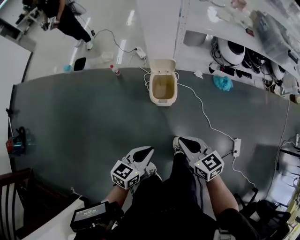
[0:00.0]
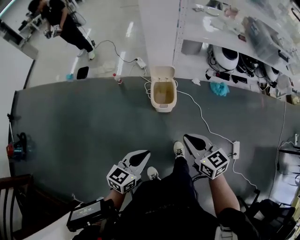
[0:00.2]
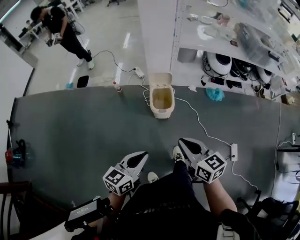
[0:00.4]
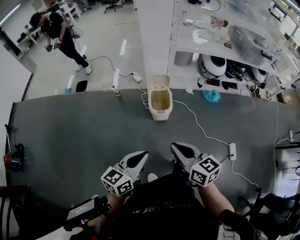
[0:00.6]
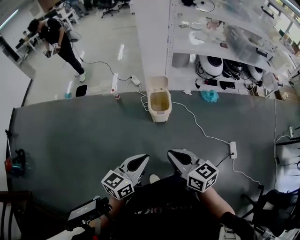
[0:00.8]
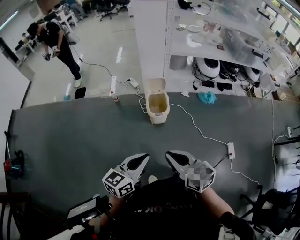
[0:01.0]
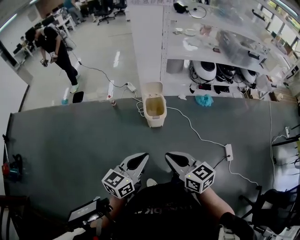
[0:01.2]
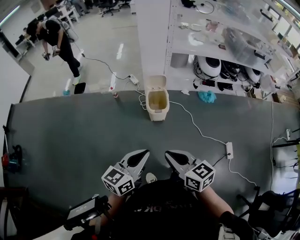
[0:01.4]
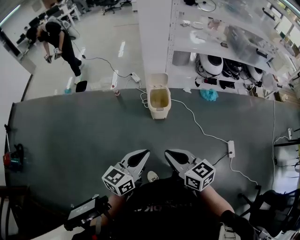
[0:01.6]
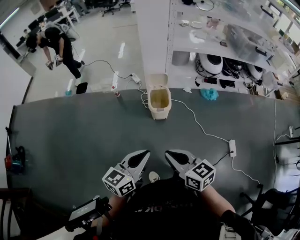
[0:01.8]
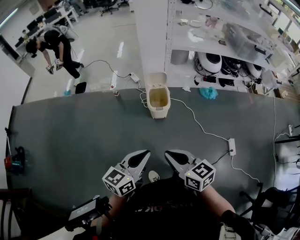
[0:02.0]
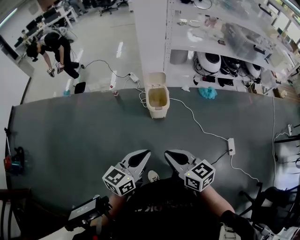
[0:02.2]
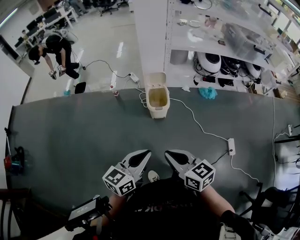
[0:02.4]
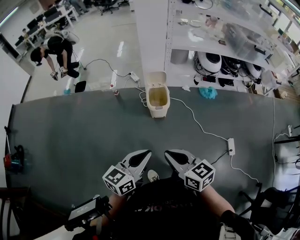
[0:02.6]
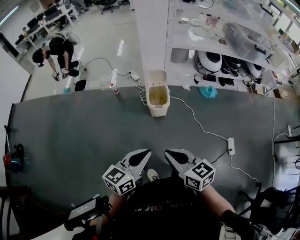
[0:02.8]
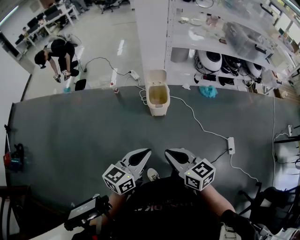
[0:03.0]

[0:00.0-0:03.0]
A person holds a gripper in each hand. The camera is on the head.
0:00.0 to 0:01.6: The left gripper travels upward and backward by about 20 cm, while the right gripper travels backward, upward and to the left by some 25 cm.
0:01.6 to 0:03.0: The grippers move only a little.

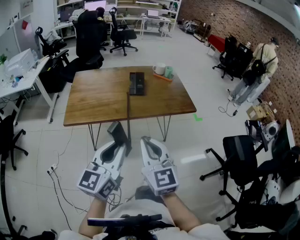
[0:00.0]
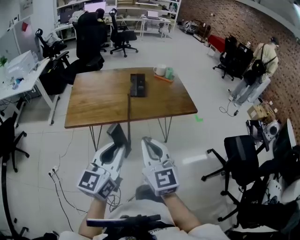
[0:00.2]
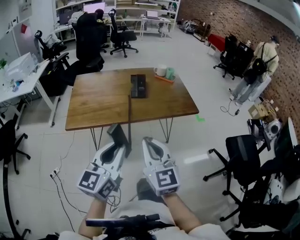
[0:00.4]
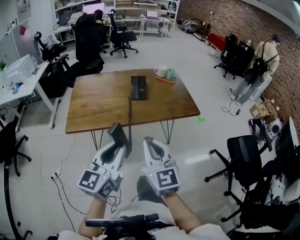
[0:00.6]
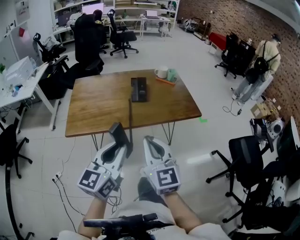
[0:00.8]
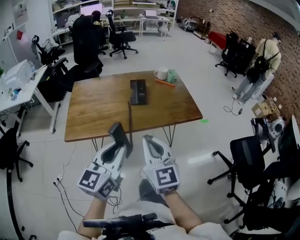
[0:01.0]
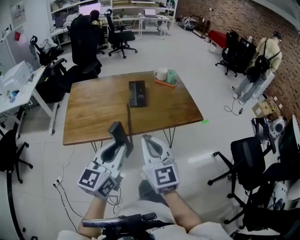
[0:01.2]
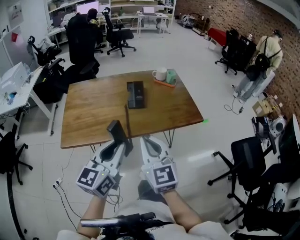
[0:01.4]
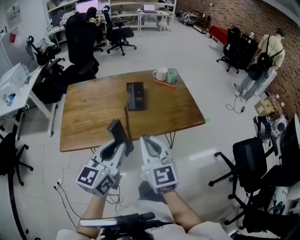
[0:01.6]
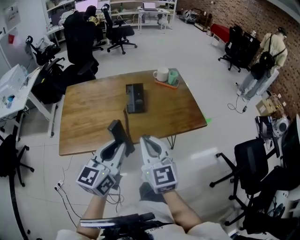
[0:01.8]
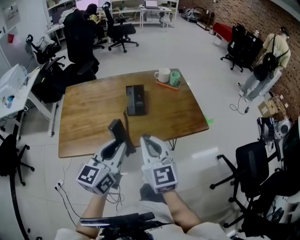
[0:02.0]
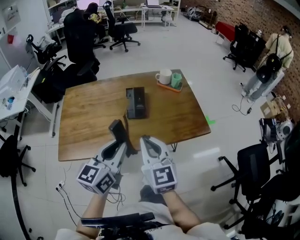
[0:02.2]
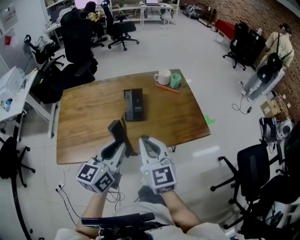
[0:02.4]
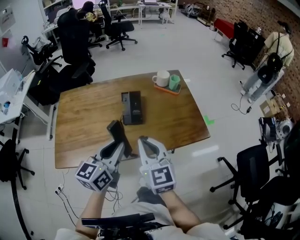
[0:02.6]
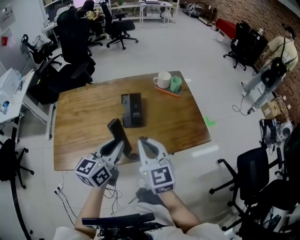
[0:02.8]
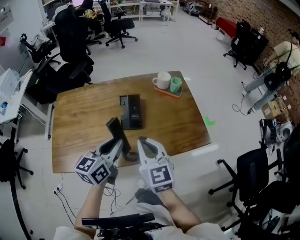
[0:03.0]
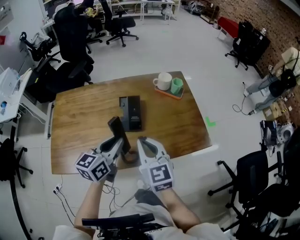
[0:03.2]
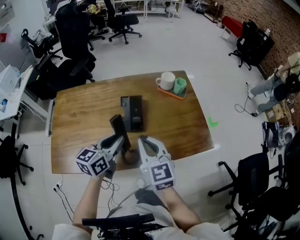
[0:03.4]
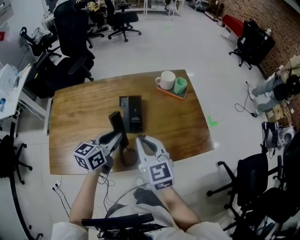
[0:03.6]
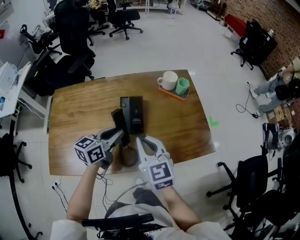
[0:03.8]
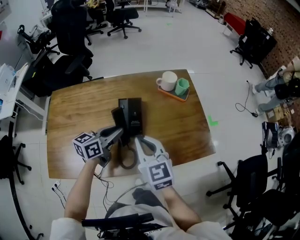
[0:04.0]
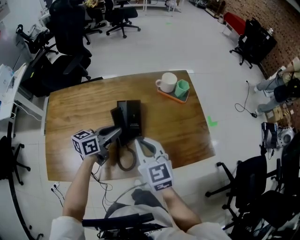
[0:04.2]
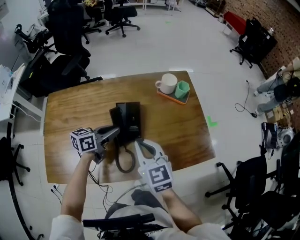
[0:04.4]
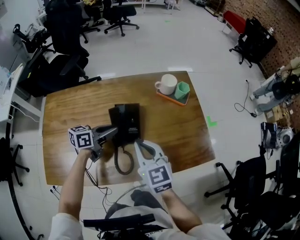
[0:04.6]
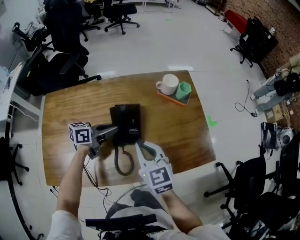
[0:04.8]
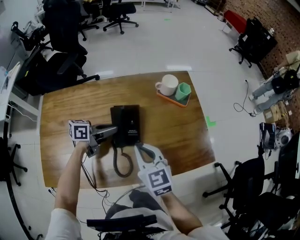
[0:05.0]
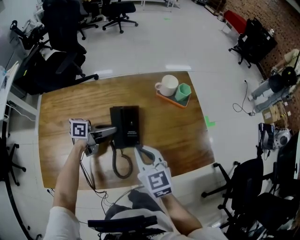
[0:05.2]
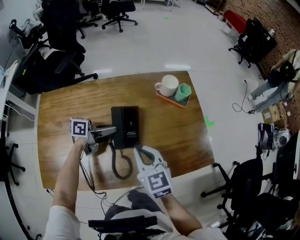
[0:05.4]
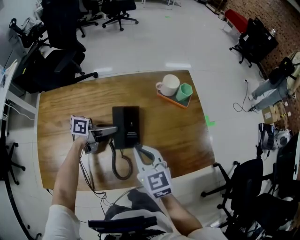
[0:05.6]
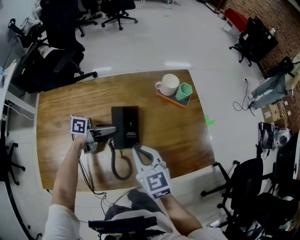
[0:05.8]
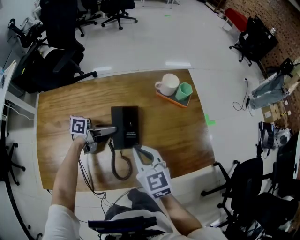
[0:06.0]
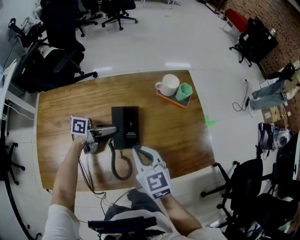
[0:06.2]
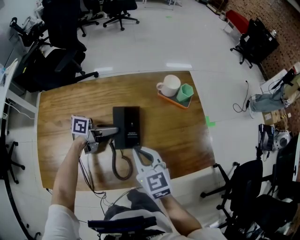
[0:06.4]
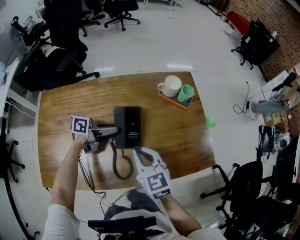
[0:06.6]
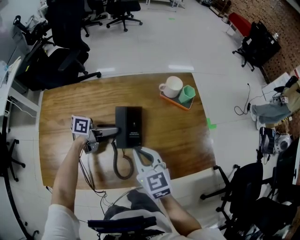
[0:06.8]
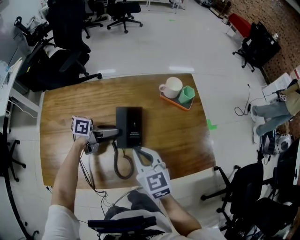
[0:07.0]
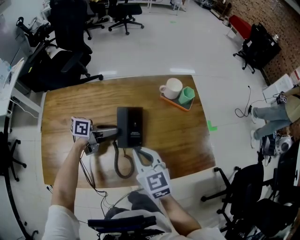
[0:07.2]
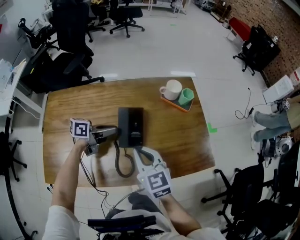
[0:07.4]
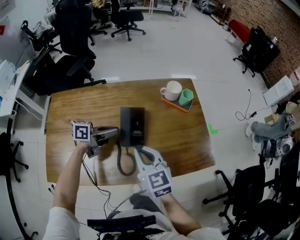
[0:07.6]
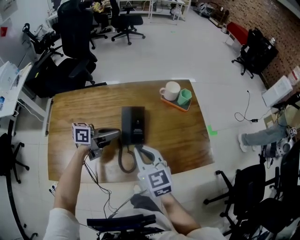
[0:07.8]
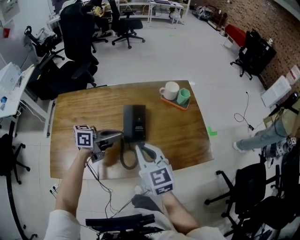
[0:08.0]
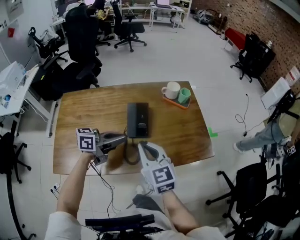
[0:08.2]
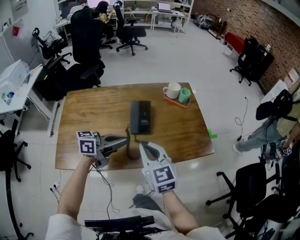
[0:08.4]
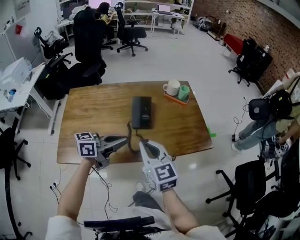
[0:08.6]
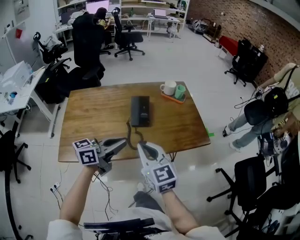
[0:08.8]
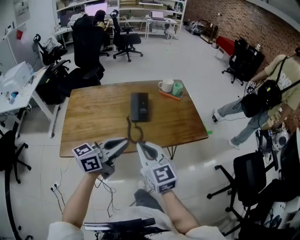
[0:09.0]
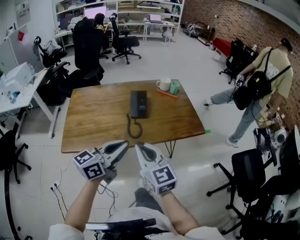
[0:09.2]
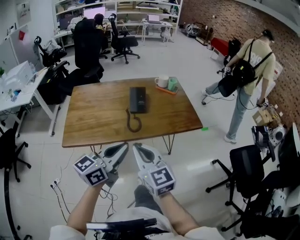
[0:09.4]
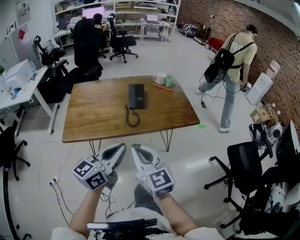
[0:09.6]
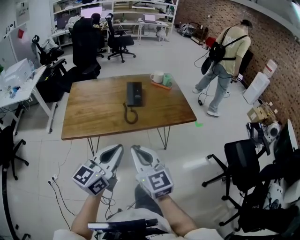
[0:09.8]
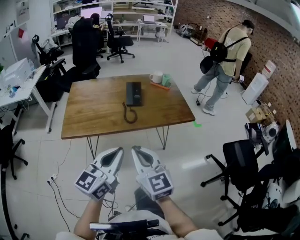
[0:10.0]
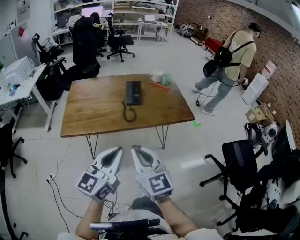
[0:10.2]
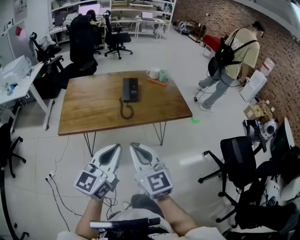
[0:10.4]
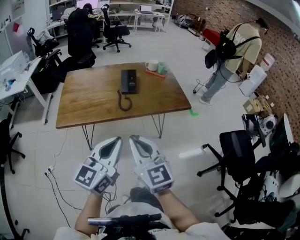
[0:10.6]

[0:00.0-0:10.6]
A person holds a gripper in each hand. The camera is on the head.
0:00.0 to 0:01.6: Both grippers travel together forward, about 20 cm.
0:01.6 to 0:03.0: Both grippers move forward, some 20 cm.
0:03.0 to 0:04.6: The right gripper is displaced forward and downward by about 10 cm; the left gripper is displaced forward and downward by roughly 20 cm, and rotates some 30 degrees.
0:04.6 to 0:06.0: The left gripper moves about 5 cm, and turns by approximately 20 degrees.
0:06.0 to 0:07.6: The left gripper travels upward by roughly 5 cm, and opens and closes again.
0:07.6 to 0:09.0: The left gripper shifts approximately 35 cm backward and upward, and changes its angle by some 30 degrees; the right gripper goes some 20 cm backward.
0:09.0 to 0:10.6: Both grippers travel together backward, some 20 cm. The left gripper changes its angle by roughly 30 degrees.

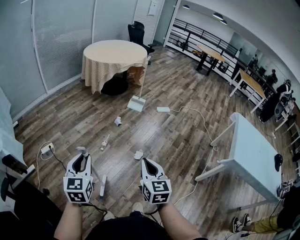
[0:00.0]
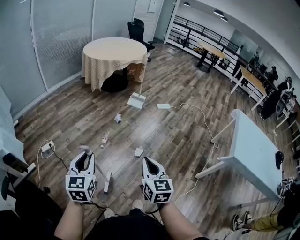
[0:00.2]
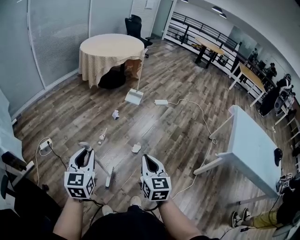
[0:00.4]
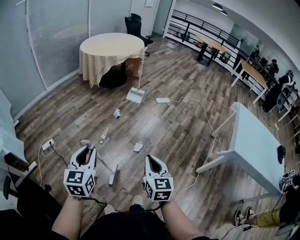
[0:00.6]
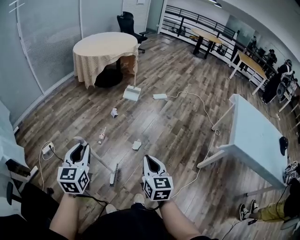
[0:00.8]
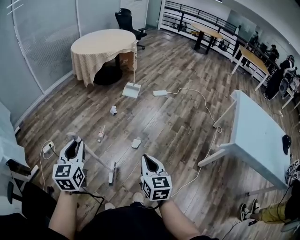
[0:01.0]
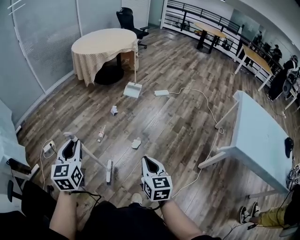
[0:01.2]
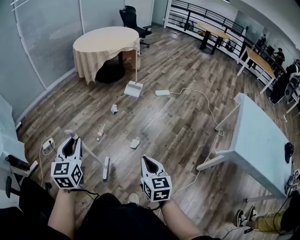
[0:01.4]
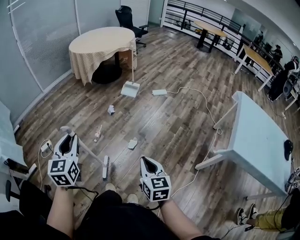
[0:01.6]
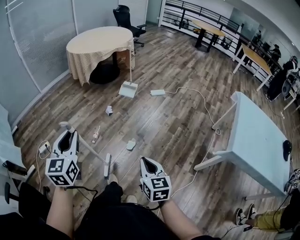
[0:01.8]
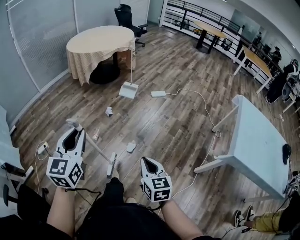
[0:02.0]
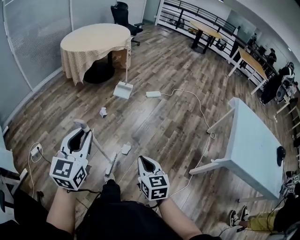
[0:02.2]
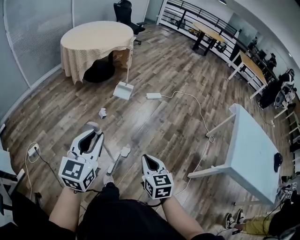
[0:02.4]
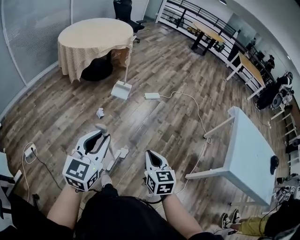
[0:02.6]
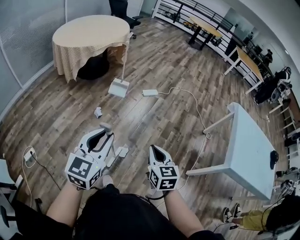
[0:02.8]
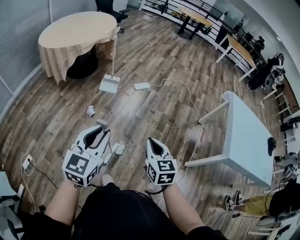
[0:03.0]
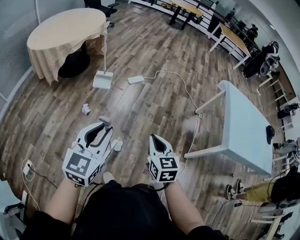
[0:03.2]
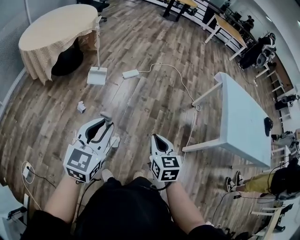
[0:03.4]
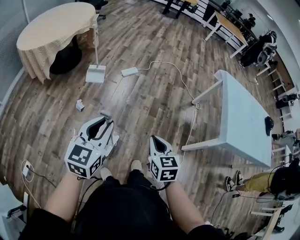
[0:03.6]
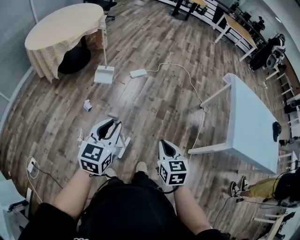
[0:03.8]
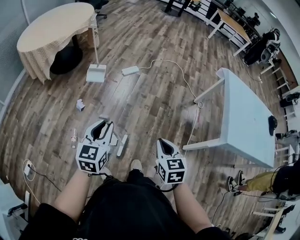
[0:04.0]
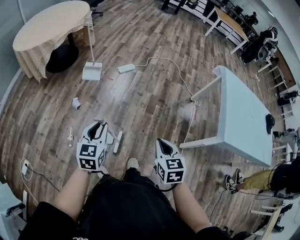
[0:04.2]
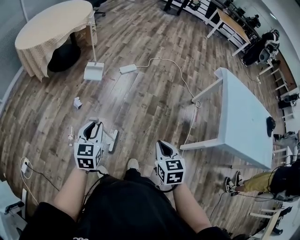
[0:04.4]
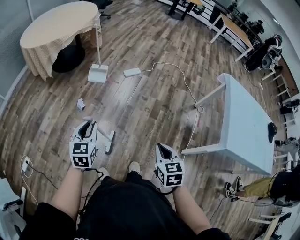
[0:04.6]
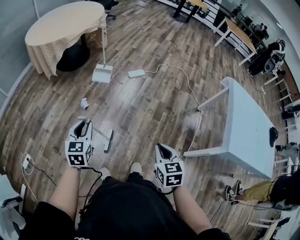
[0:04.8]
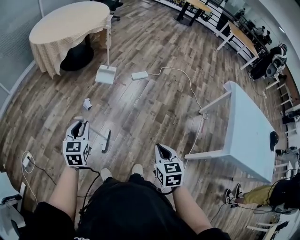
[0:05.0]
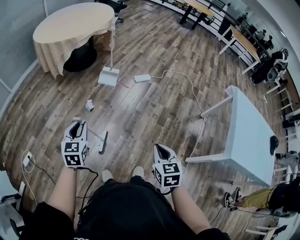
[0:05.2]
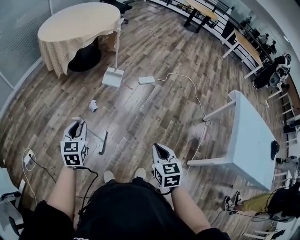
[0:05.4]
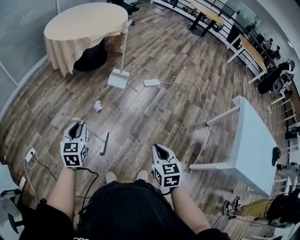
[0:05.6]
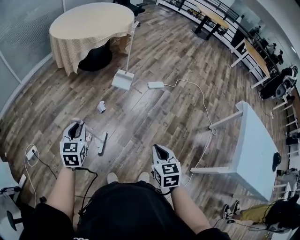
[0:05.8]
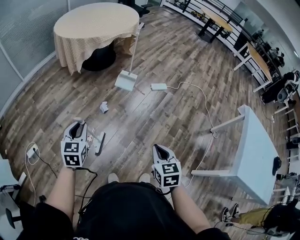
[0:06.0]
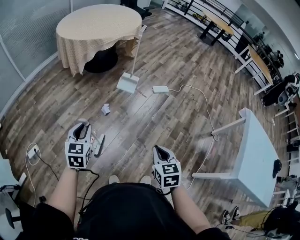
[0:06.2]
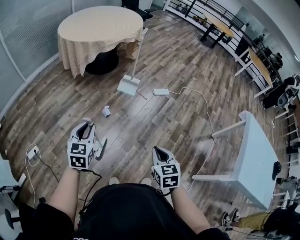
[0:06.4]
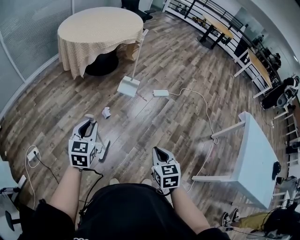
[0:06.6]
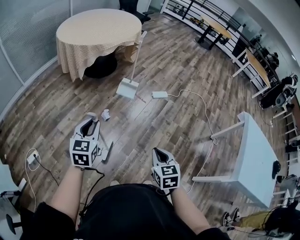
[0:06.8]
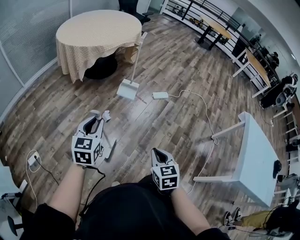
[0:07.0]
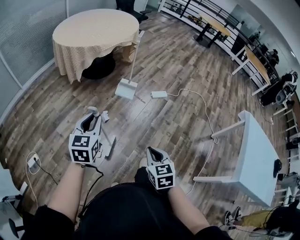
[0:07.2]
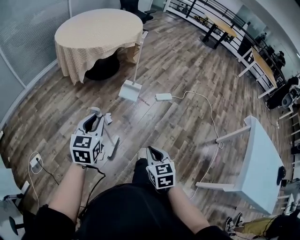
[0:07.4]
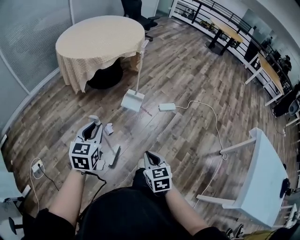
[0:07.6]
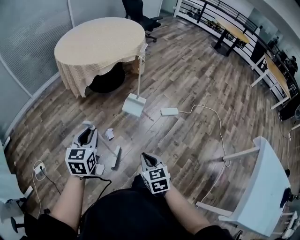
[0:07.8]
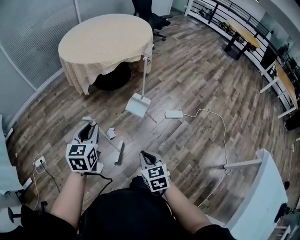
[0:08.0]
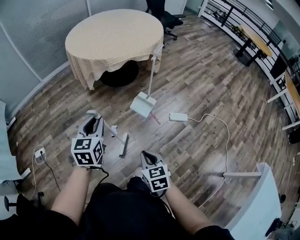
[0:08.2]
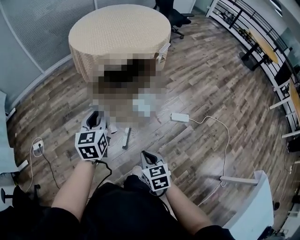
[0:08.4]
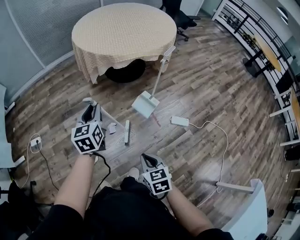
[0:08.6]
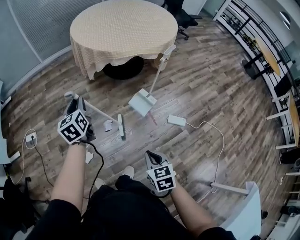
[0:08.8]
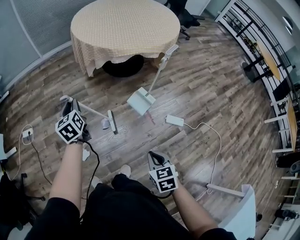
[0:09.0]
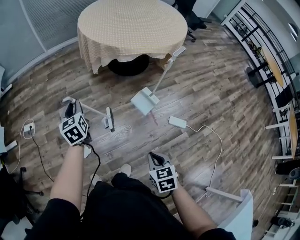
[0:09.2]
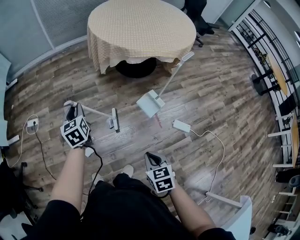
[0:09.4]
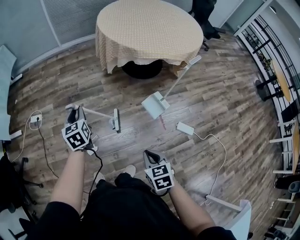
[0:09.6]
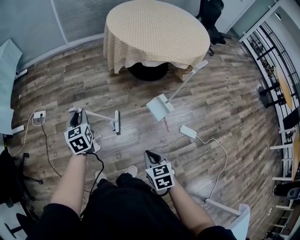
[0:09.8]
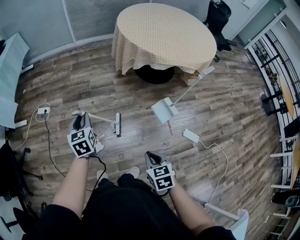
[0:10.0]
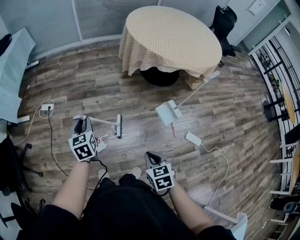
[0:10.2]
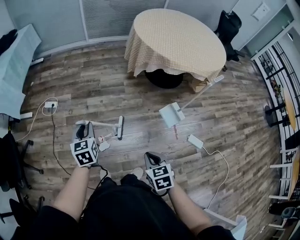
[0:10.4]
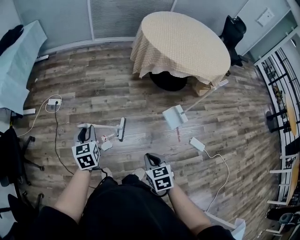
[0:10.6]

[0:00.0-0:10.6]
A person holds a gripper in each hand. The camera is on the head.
0:00.0 to 0:01.6: The left gripper heads to the right and forward, covering some 20 cm; the right gripper travels to the right by some 20 cm.
0:01.6 to 0:03.0: The right gripper ends up about 25 cm from where it was, while the left gripper ends up about 25 cm from where it was, and changes its angle by roughly 40 degrees.
0:03.0 to 0:04.6: The left gripper travels downward and forward by roughly 15 cm; the right gripper heads to the right and downward, covering some 15 cm.
0:04.6 to 0:06.0: The left gripper heads to the left, covering roughly 25 cm. Meanwhile the right gripper heads to the left and forward, covering about 20 cm.
0:06.0 to 0:07.6: The right gripper shifts approximately 15 cm forward; the left gripper is displaced forward and to the right by some 20 cm.
0:07.6 to 0:09.0: The right gripper shifts by about 25 cm, and changes its angle by some 30 degrees; the left gripper moves some 25 cm, and rotates approximately 60 degrees.
0:09.0 to 0:10.6: The left gripper travels to the left and backward by some 30 cm, while the right gripper shifts roughly 20 cm to the left, and changes its angle by approximately 20 degrees.
